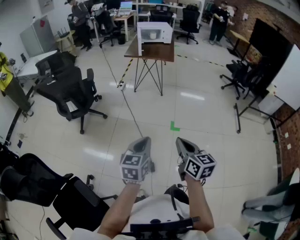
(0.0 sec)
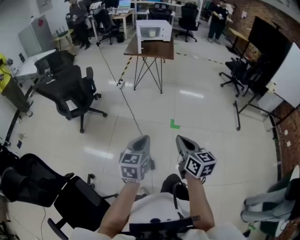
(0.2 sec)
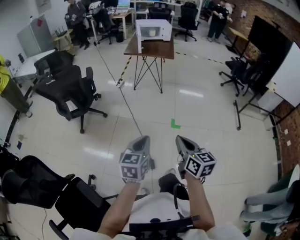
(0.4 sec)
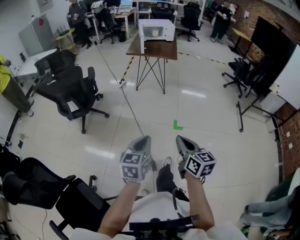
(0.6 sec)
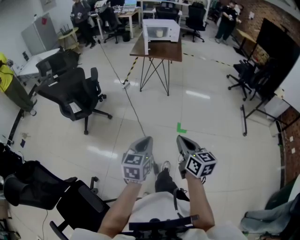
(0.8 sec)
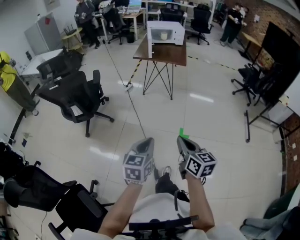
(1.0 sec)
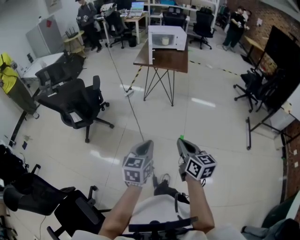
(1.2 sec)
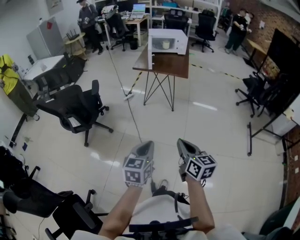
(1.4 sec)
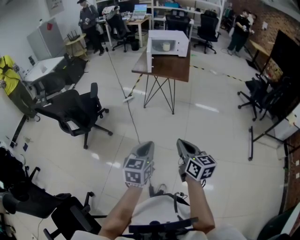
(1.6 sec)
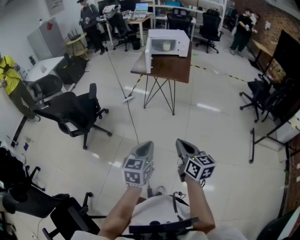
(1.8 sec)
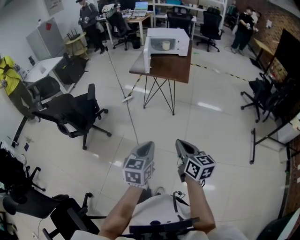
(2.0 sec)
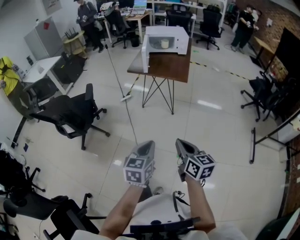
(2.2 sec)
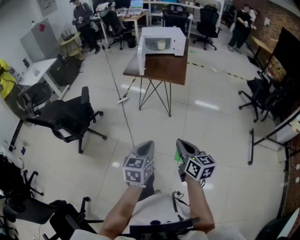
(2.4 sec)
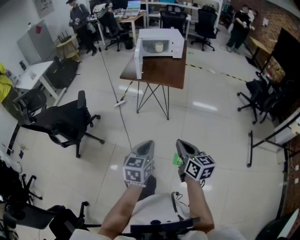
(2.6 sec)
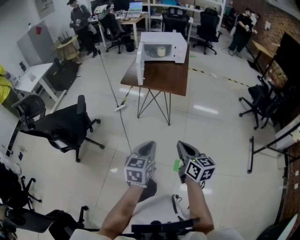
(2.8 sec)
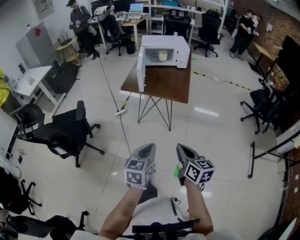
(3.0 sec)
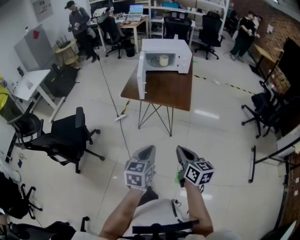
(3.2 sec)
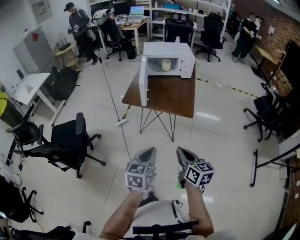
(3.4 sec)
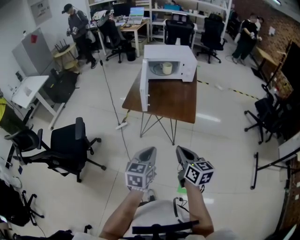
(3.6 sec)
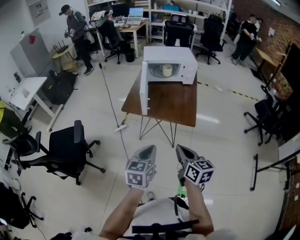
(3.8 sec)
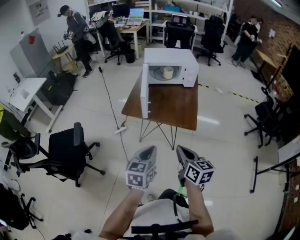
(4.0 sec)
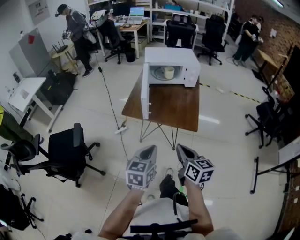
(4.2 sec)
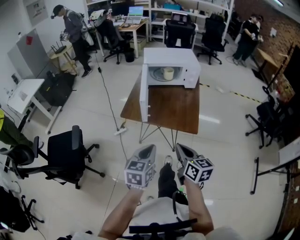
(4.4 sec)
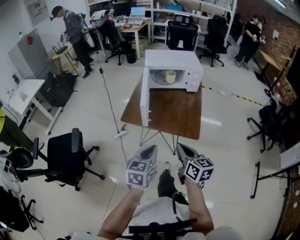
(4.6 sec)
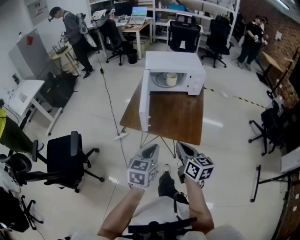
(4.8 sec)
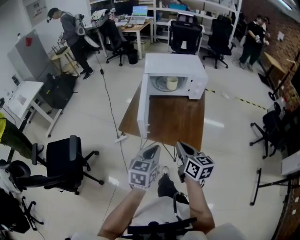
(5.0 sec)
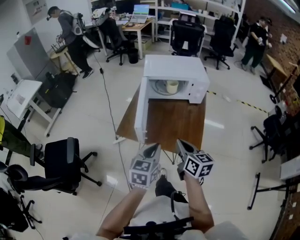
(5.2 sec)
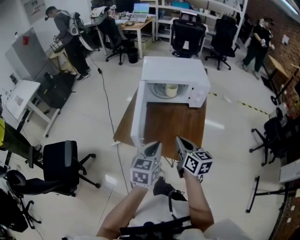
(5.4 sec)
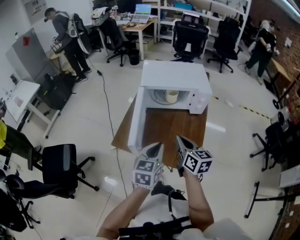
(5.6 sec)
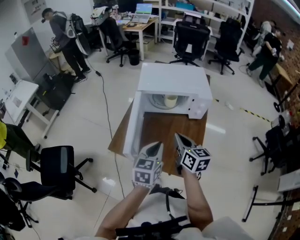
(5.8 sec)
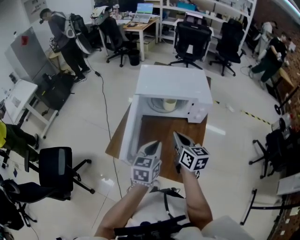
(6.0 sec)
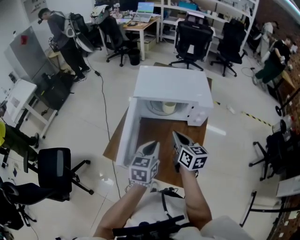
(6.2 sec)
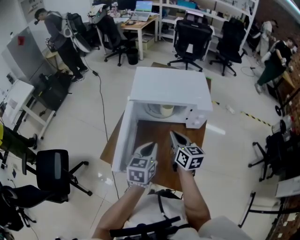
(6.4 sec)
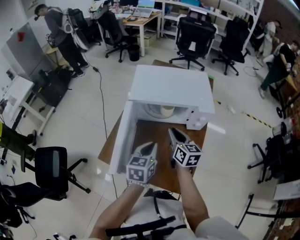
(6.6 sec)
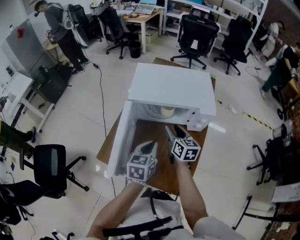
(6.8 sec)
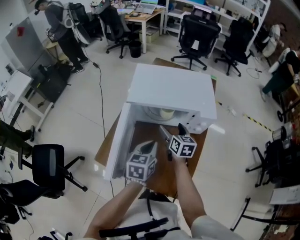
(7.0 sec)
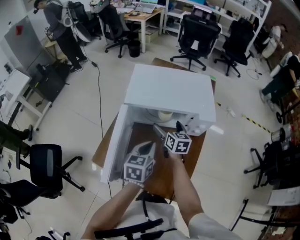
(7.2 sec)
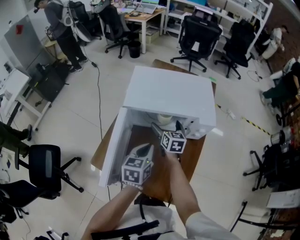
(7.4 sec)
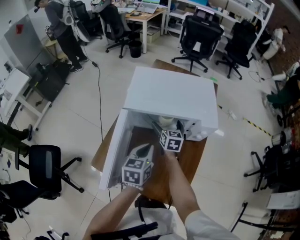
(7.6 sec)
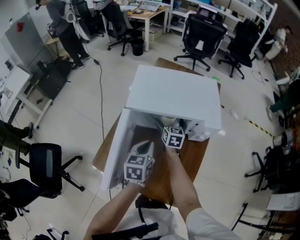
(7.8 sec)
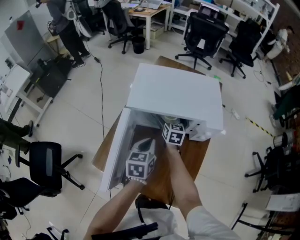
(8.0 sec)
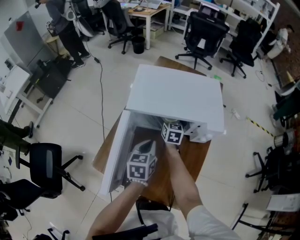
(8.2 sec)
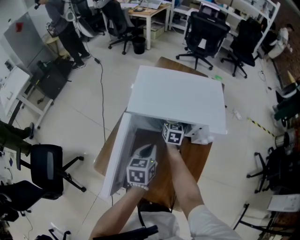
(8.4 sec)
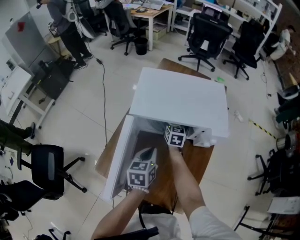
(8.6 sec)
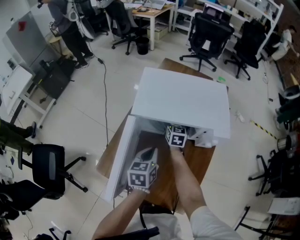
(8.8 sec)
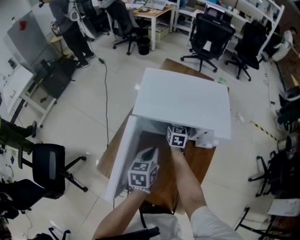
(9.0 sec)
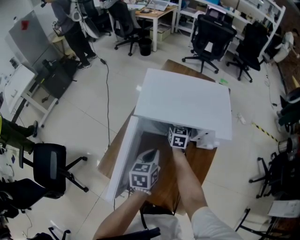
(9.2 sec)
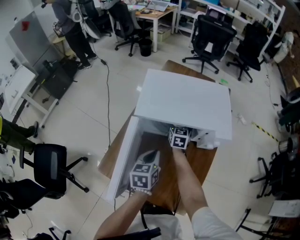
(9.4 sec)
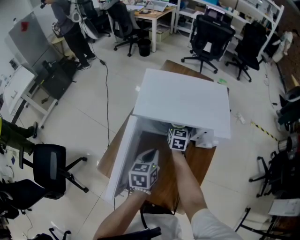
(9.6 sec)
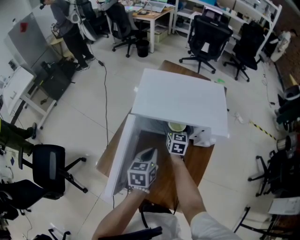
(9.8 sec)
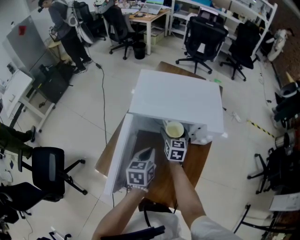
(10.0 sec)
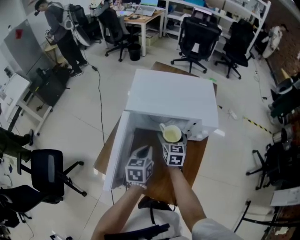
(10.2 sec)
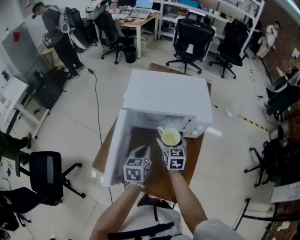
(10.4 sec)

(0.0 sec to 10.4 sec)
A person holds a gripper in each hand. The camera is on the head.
0.0 sec - 1.4 sec: The two grippers go approximately 25 cm forward.
1.4 sec - 3.0 sec: The two grippers go approximately 30 cm forward.
3.0 sec - 4.4 sec: The grippers both shift forward by approximately 25 cm.
4.4 sec - 6.0 sec: The two grippers go about 35 cm forward.
6.0 sec - 7.4 sec: The right gripper shifts approximately 25 cm forward and downward, and opens. The left gripper travels forward and downward by approximately 15 cm.
7.4 sec - 9.0 sec: The left gripper moves approximately 5 cm. Meanwhile the right gripper goes roughly 10 cm forward and downward.
9.0 sec - 10.4 sec: The right gripper goes approximately 20 cm backward and upward.

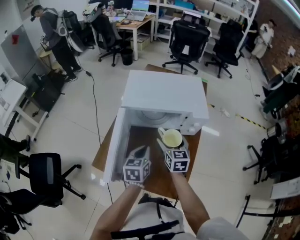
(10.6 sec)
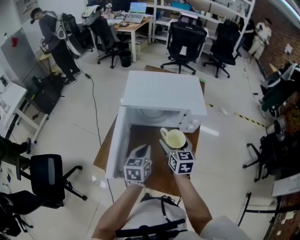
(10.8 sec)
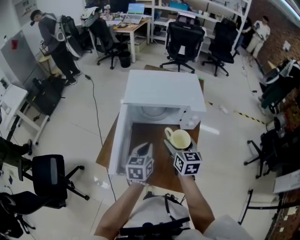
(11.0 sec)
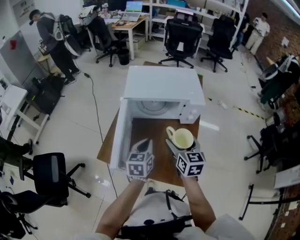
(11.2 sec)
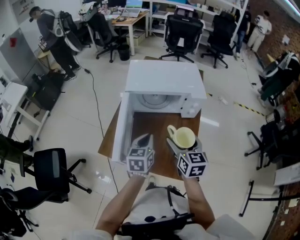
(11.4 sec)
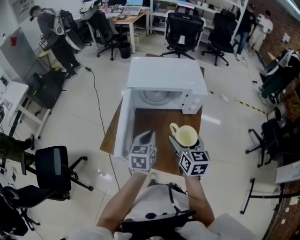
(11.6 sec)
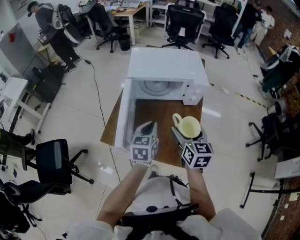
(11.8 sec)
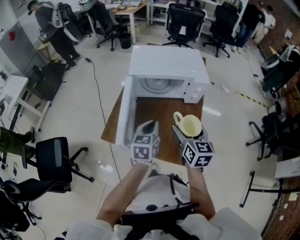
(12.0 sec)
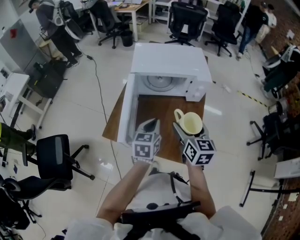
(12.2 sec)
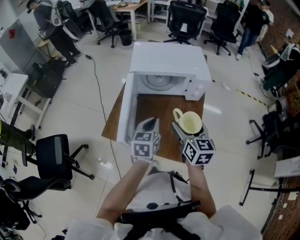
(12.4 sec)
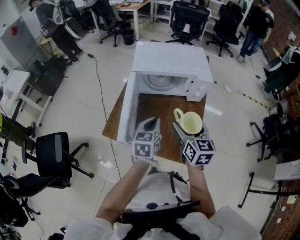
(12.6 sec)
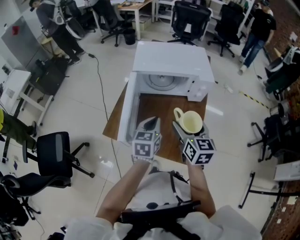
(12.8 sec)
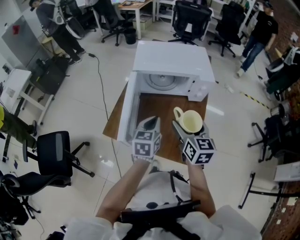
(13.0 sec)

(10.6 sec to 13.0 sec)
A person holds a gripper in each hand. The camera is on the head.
10.6 sec - 11.8 sec: The right gripper travels backward and upward by roughly 15 cm; the left gripper is displaced backward by some 5 cm.
11.8 sec - 13.0 sec: The grippers stay close to where they were, moving slightly.

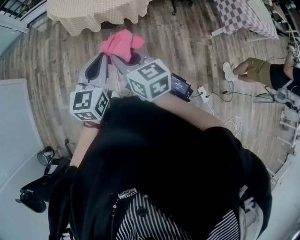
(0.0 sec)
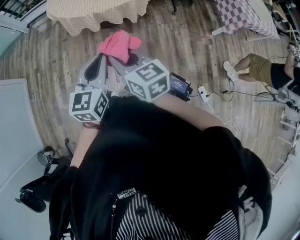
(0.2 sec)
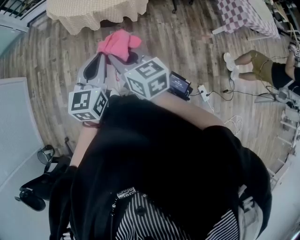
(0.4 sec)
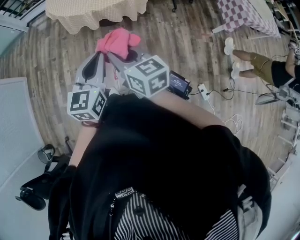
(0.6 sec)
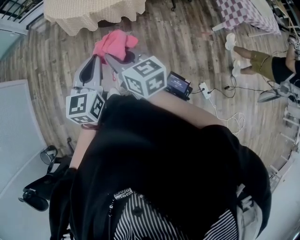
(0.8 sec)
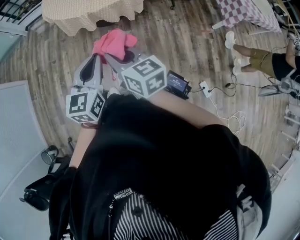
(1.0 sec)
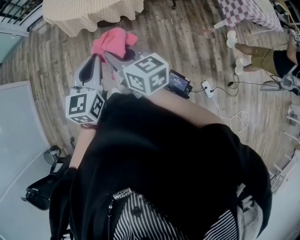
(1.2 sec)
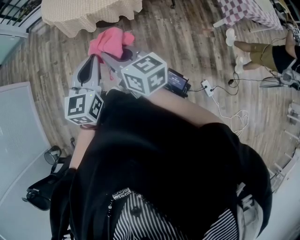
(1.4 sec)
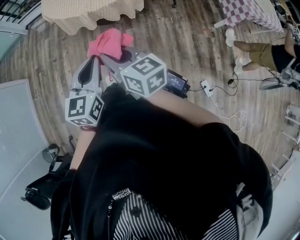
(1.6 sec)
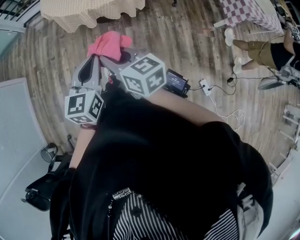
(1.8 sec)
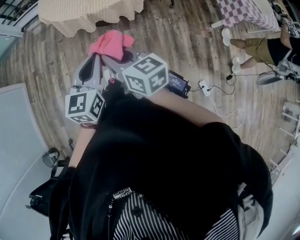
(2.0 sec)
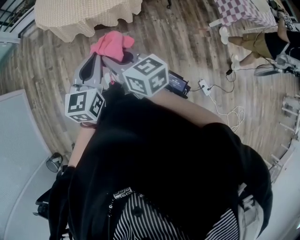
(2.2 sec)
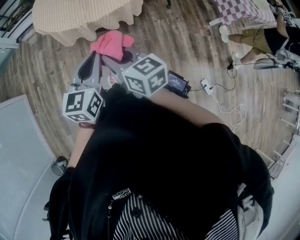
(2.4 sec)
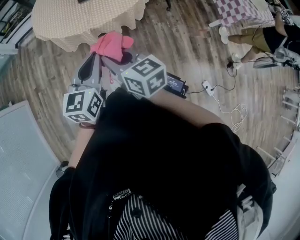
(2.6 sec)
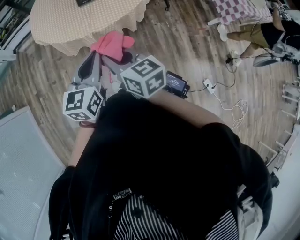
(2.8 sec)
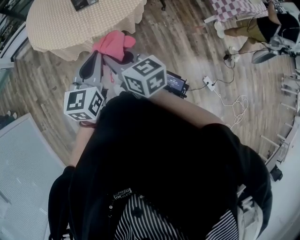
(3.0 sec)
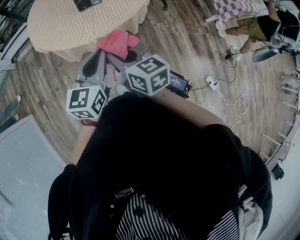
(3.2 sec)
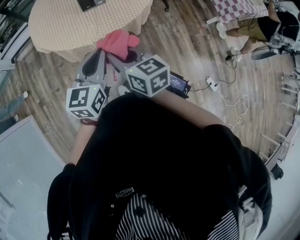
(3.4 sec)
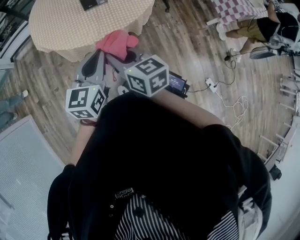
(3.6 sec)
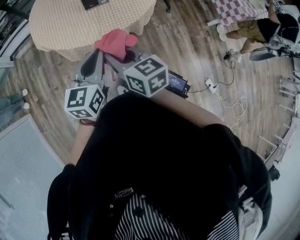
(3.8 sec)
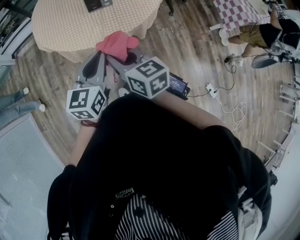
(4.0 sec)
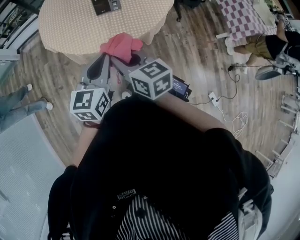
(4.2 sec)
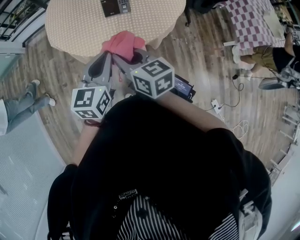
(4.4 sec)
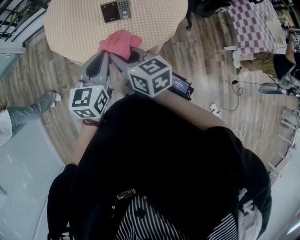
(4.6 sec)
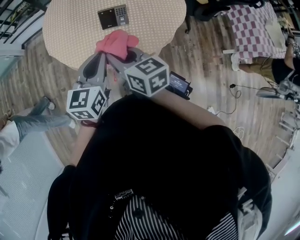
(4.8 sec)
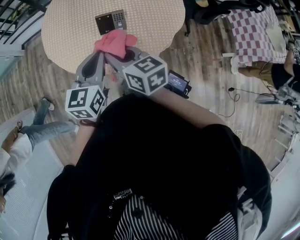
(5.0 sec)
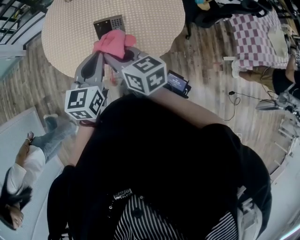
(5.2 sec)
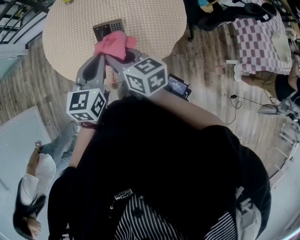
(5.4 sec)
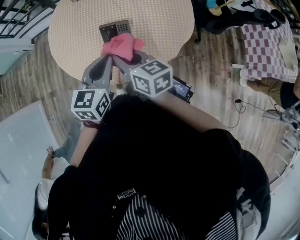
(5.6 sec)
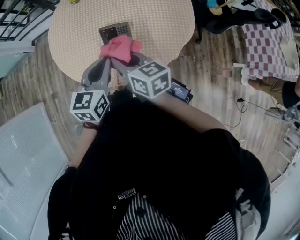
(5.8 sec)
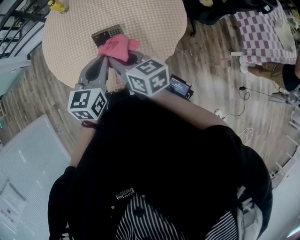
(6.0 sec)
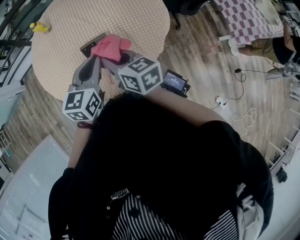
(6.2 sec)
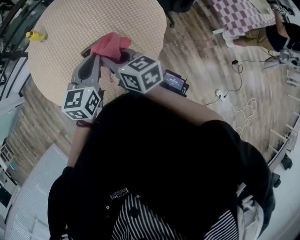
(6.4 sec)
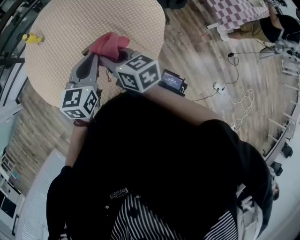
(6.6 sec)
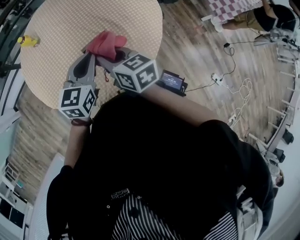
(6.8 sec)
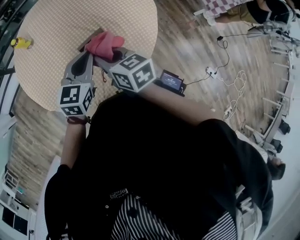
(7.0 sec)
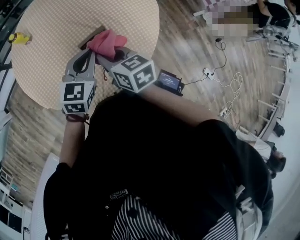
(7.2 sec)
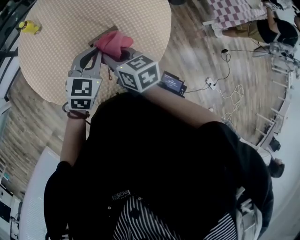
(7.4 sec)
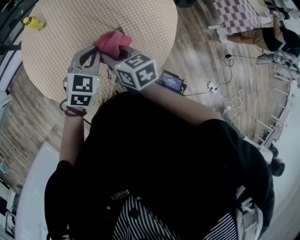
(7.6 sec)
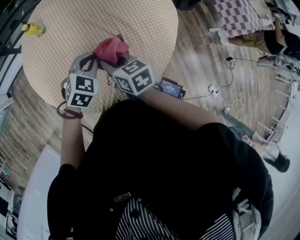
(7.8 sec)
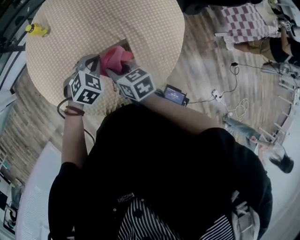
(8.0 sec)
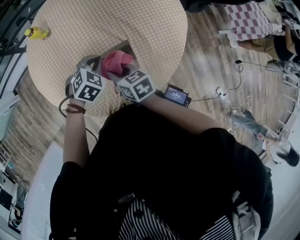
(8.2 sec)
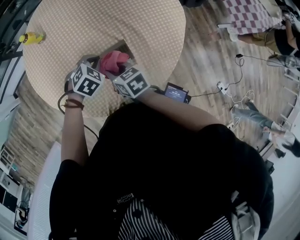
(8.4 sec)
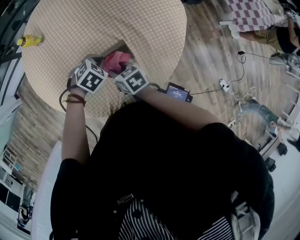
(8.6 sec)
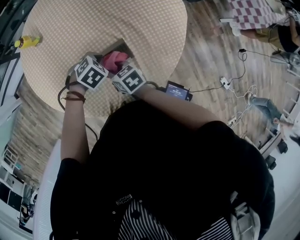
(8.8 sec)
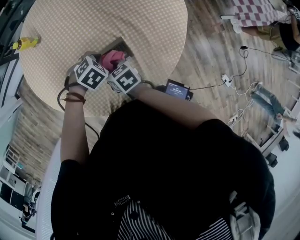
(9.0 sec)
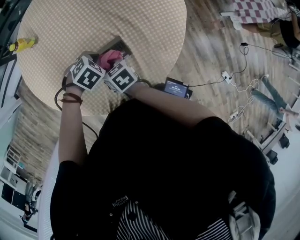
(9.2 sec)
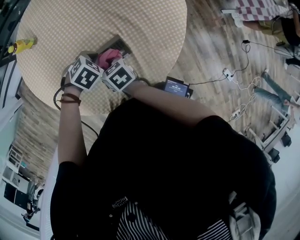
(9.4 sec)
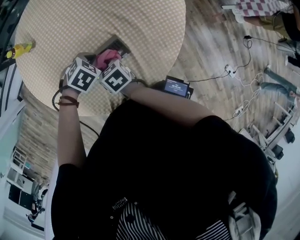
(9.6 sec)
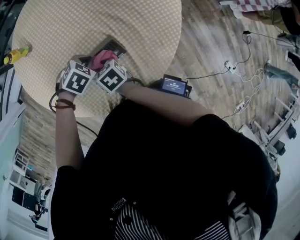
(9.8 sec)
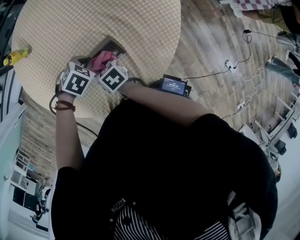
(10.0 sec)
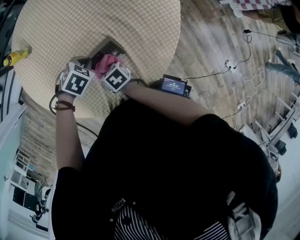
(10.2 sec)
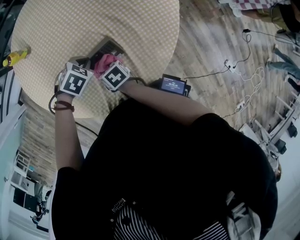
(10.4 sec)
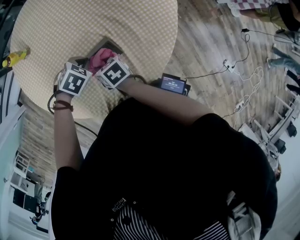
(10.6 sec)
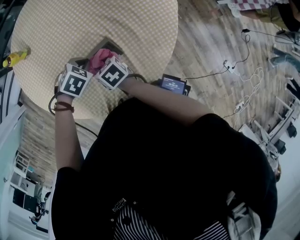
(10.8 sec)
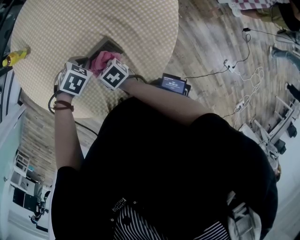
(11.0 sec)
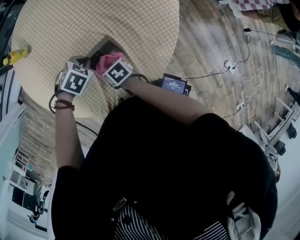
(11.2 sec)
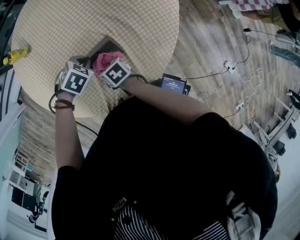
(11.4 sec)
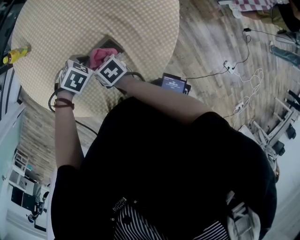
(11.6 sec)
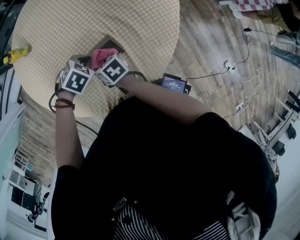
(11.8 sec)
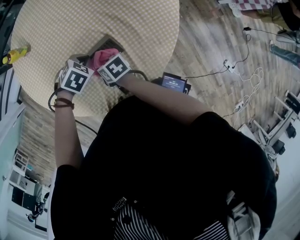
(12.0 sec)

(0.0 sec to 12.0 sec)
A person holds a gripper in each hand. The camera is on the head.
0.0 sec - 1.6 sec: The grippers stay close to where they were, moving slightly.
1.6 sec - 3.0 sec: The grippers both shift forward by about 25 cm.
3.0 sec - 4.4 sec: Both grippers travel together forward, some 15 cm.
4.4 sec - 6.0 sec: The grippers both shift forward and to the right by approximately 25 cm.
6.0 sec - 7.6 sec: The right gripper ends up some 15 cm from where it was, and rotates some 20 degrees; the left gripper shifts by some 20 cm, and swivels roughly 40 degrees.
7.6 sec - 9.0 sec: Both grippers move downward, roughly 15 cm. The left gripper tips its fingers downward by some 40 degrees.
9.0 sec - 10.4 sec: The right gripper heads downward, covering roughly 5 cm.
10.4 sec - 12.0 sec: The right gripper goes up and down, approximately 5 cm each way, reversing 2 times.
